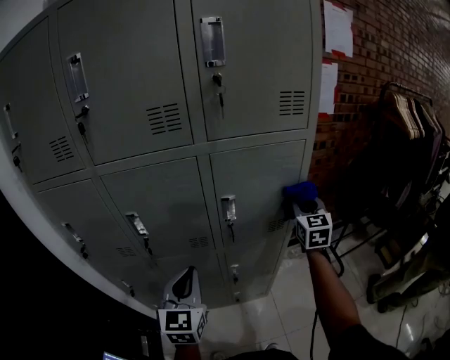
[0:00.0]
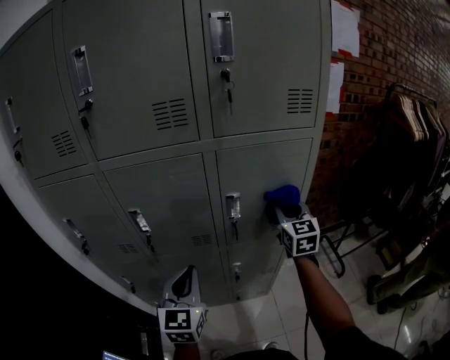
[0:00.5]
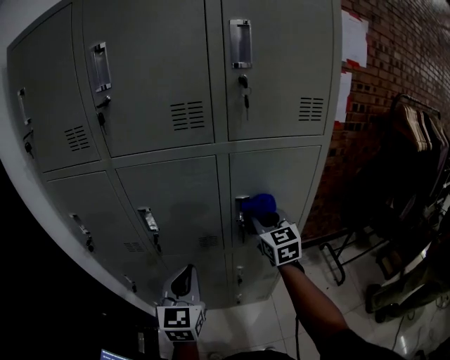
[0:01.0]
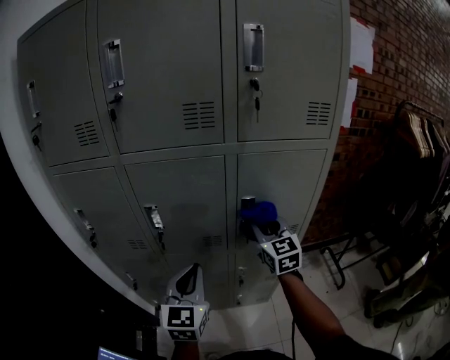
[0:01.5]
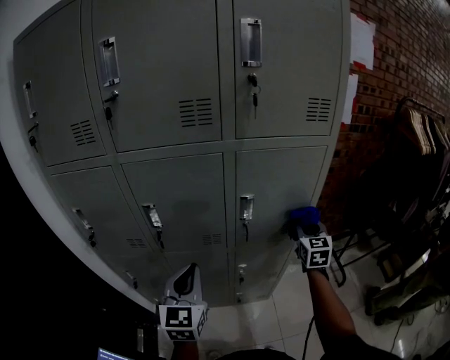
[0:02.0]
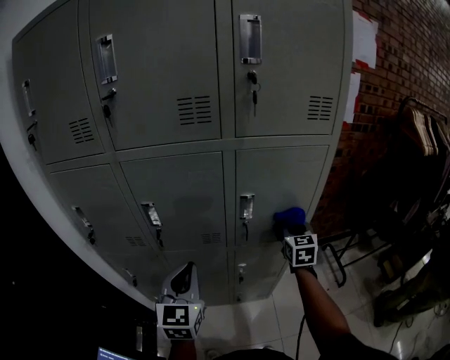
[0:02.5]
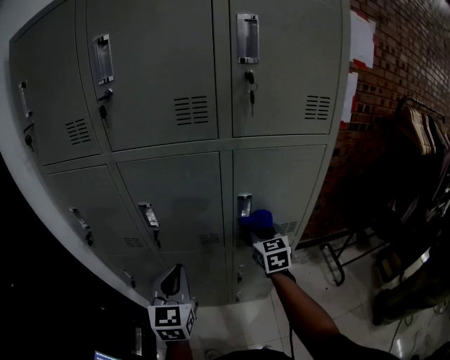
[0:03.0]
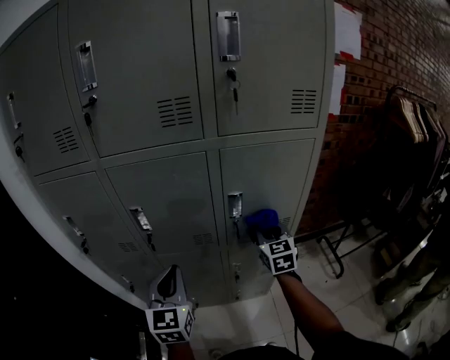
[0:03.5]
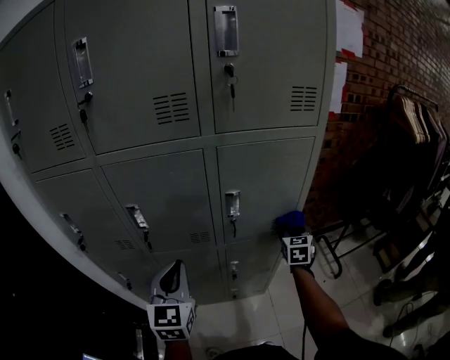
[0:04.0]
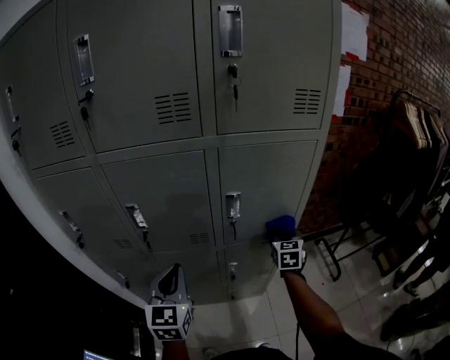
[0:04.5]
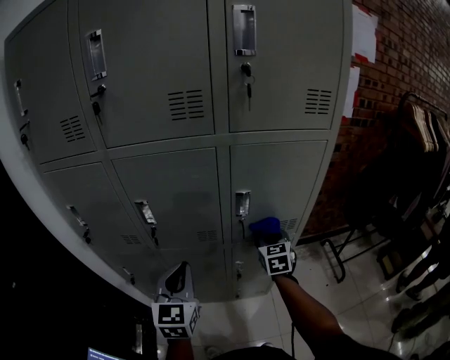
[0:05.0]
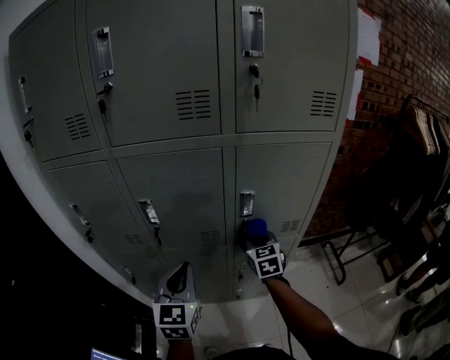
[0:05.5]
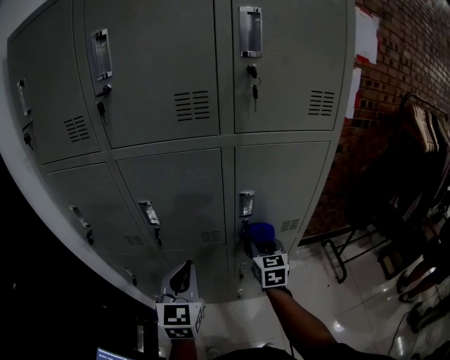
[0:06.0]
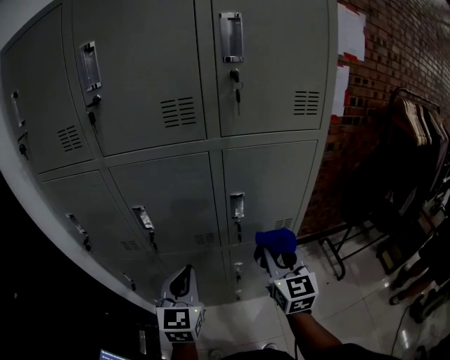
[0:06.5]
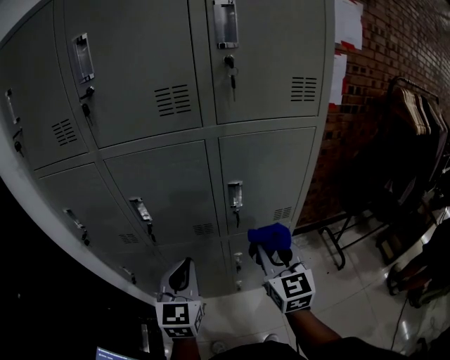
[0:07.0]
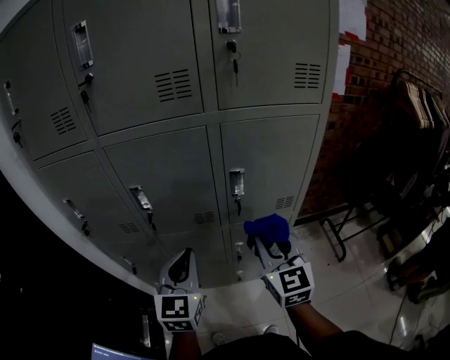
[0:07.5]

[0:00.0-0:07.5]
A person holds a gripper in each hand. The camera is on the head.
0:00.0 to 0:02.0: The right gripper goes some 5 cm downward, and travels to the left and back again, roughly 20 cm each way.
0:02.0 to 0:04.0: The right gripper goes some 10 cm downward, and goes to the left and returns, some 15 cm each way.
0:04.0 to 0:05.5: The right gripper heads to the left, covering some 20 cm, and turns by approximately 20 degrees.
0:05.5 to 0:07.5: The right gripper travels backward and upward by about 20 cm.

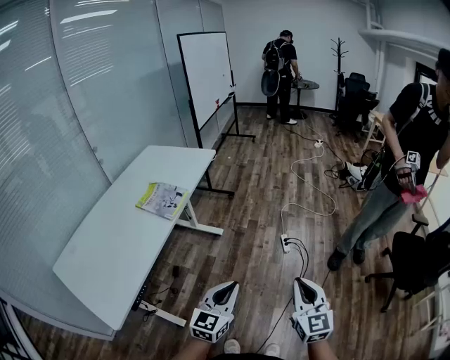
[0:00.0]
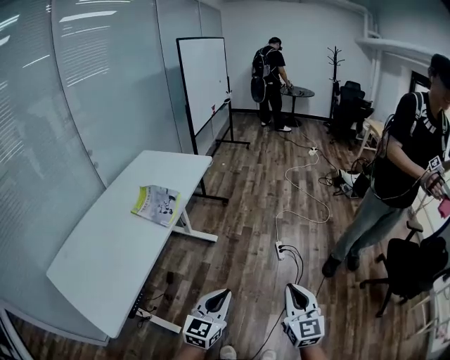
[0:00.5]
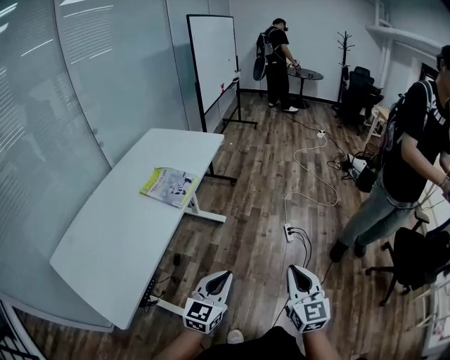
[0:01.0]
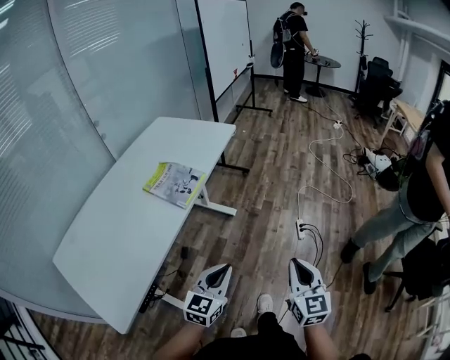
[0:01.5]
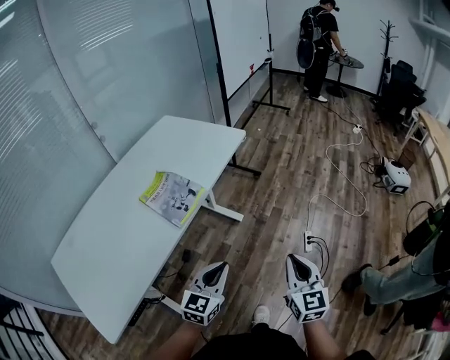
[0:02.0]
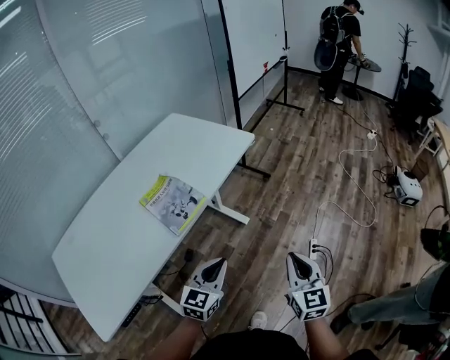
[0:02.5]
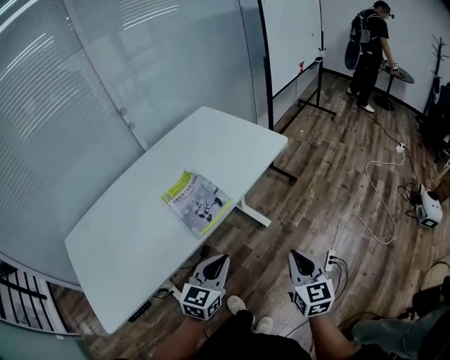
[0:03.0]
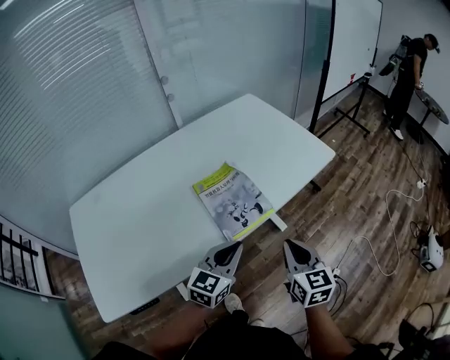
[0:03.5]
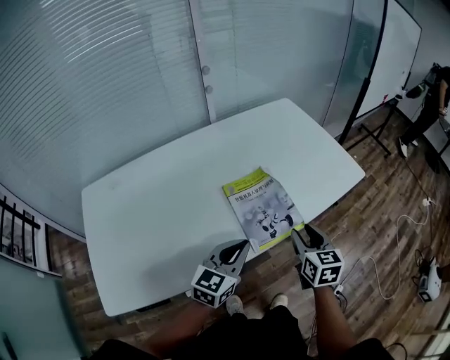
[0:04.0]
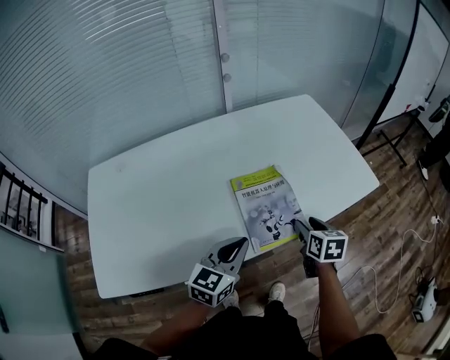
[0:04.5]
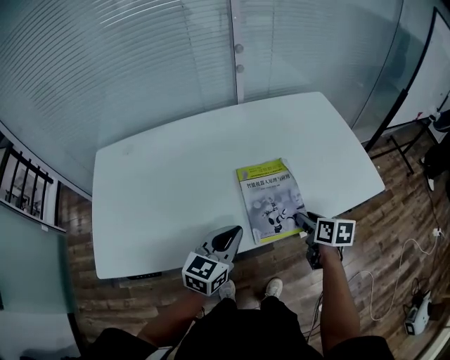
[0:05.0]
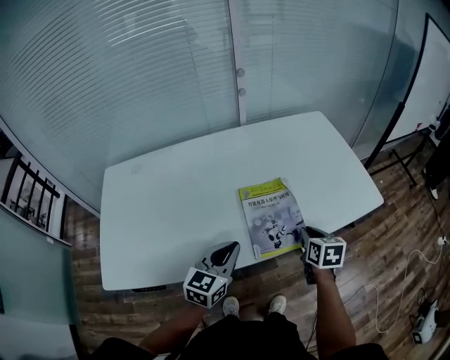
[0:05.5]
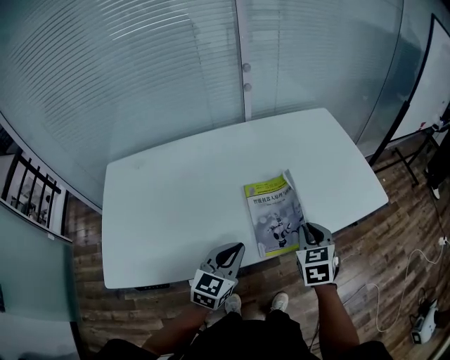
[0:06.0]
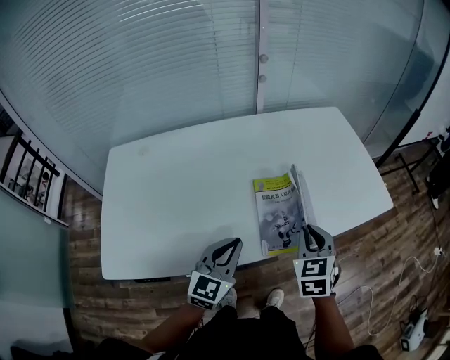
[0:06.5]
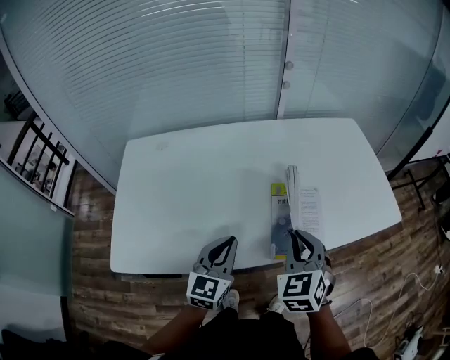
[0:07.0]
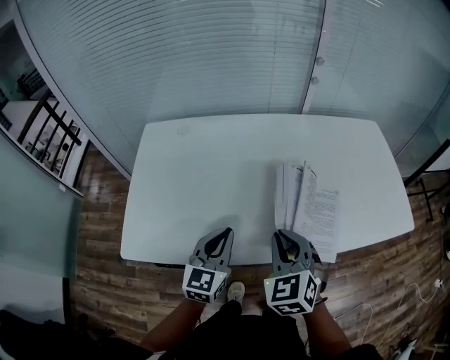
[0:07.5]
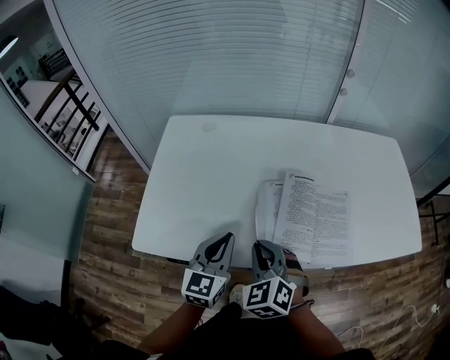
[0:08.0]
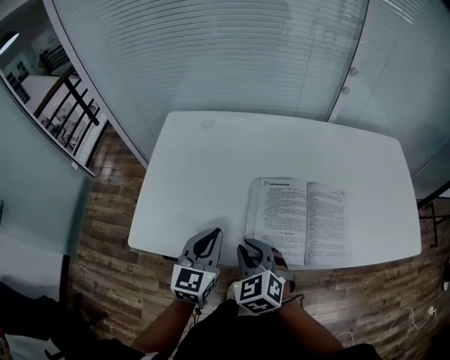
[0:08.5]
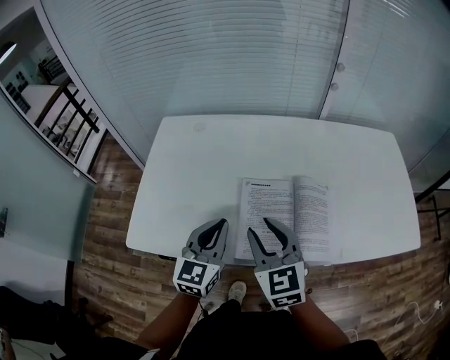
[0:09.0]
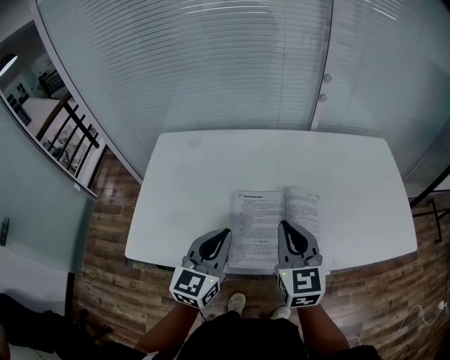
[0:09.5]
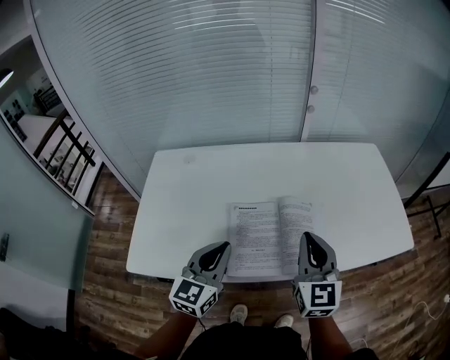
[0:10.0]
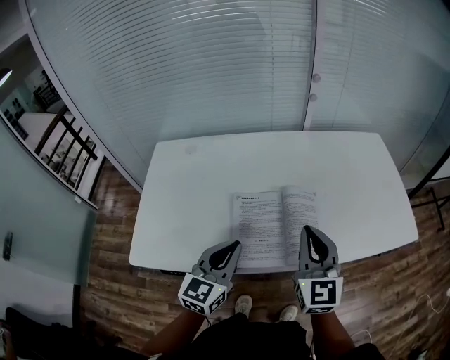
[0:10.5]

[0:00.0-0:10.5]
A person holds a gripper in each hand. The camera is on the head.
0:00.0 to 0:02.0: Both grippers travel together forward and to the left, some 25 cm.
0:02.0 to 0:04.0: The left gripper ends up some 25 cm from where it was, and swivels some 30 degrees, while the right gripper ends up about 40 cm from where it was, rotates approximately 40 degrees, and opens.
0:04.0 to 0:06.5: The two grippers go roughly 5 cm to the left. The right gripper turns by roughly 30 degrees, and closes. The left gripper swivels about 20 degrees.
0:06.5 to 0:08.5: The left gripper ends up approximately 20 cm from where it was, and rotates roughly 30 degrees; the right gripper moves approximately 35 cm, and changes its angle by some 40 degrees.
0:08.5 to 0:10.5: The right gripper heads to the right and upward, covering some 25 cm, points its fingers roughly 30 degrees further upward, and opens, then closes again, while the left gripper heads to the right and upward, covering some 15 cm.

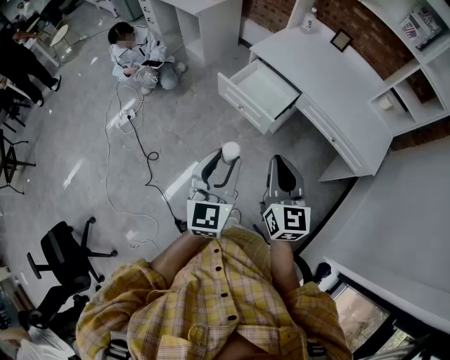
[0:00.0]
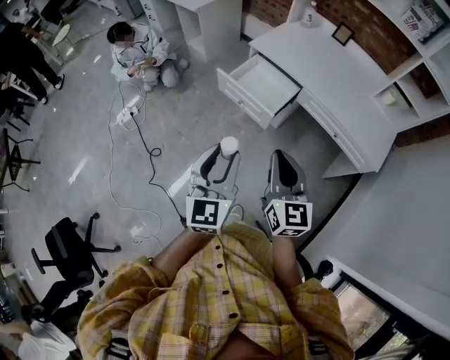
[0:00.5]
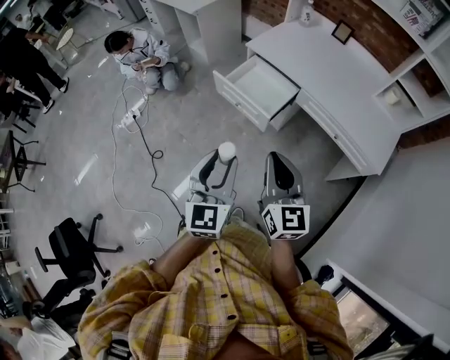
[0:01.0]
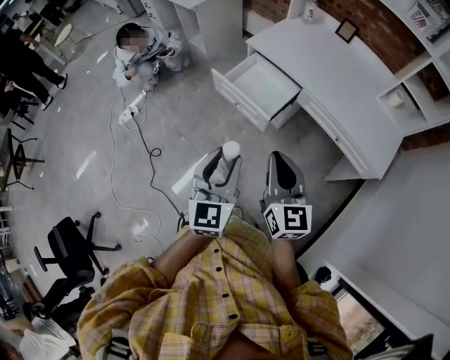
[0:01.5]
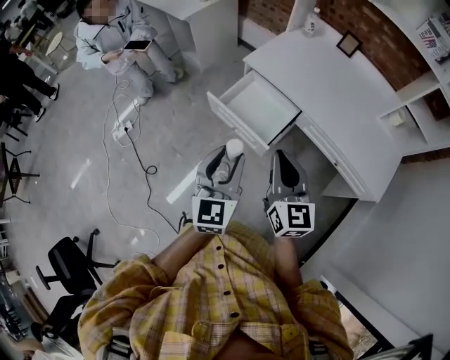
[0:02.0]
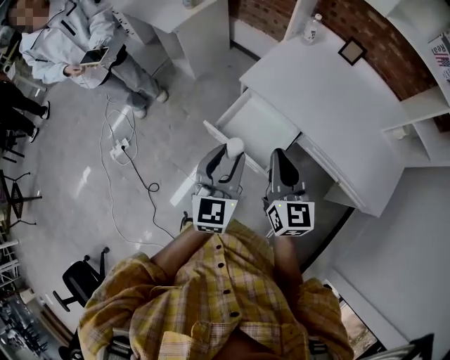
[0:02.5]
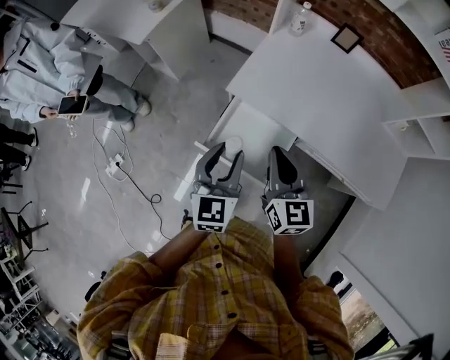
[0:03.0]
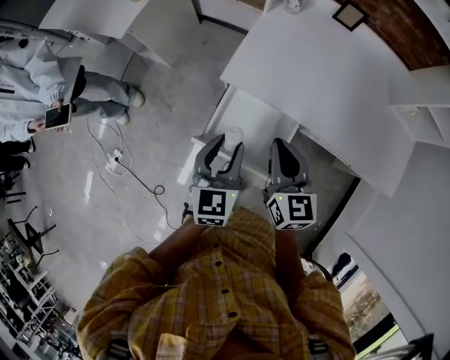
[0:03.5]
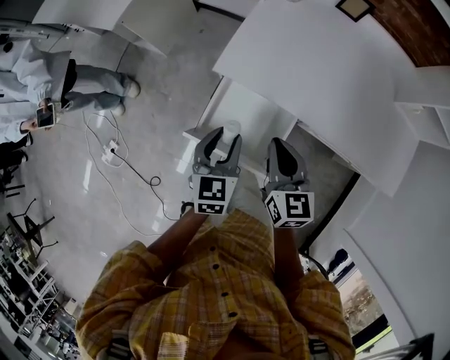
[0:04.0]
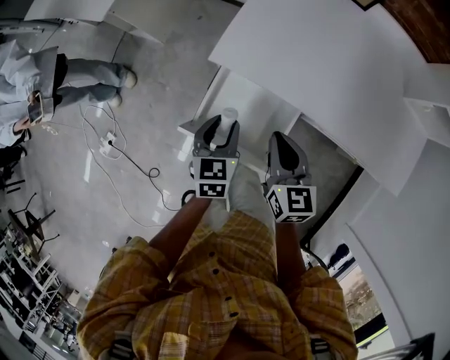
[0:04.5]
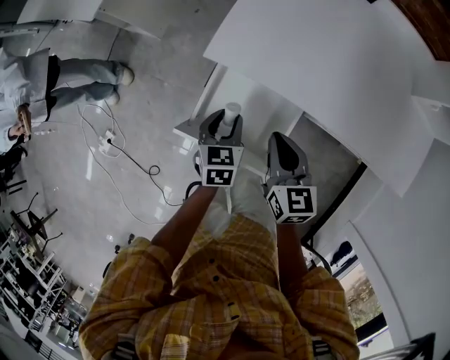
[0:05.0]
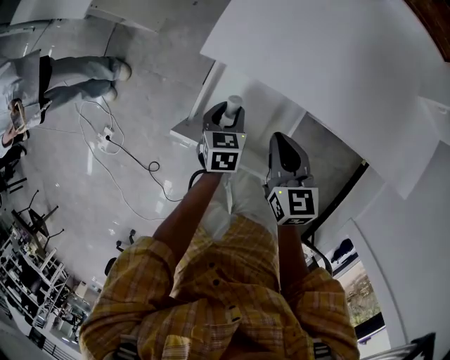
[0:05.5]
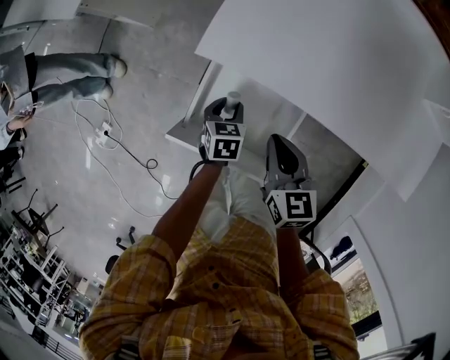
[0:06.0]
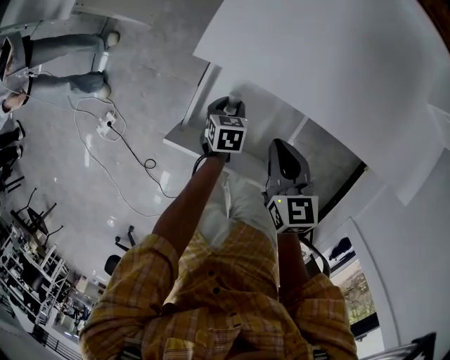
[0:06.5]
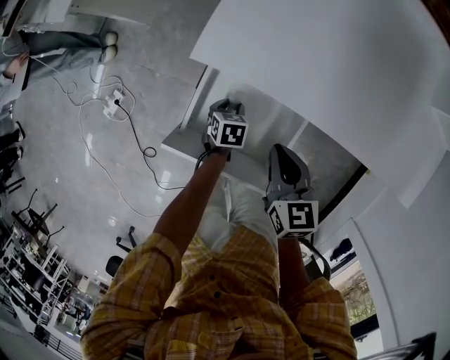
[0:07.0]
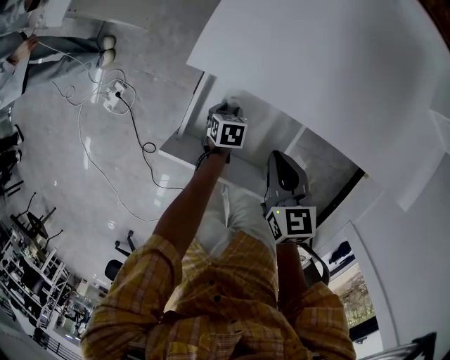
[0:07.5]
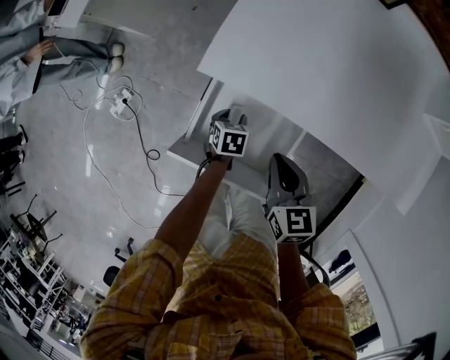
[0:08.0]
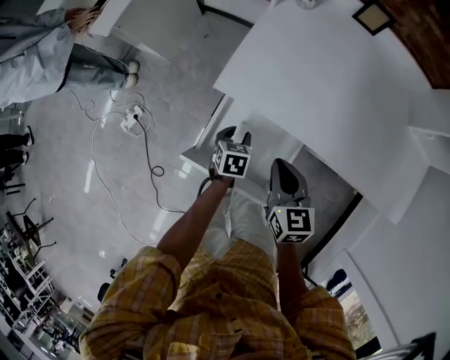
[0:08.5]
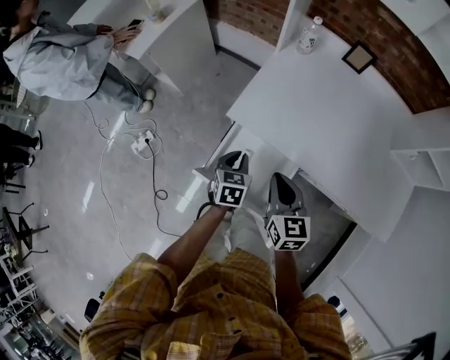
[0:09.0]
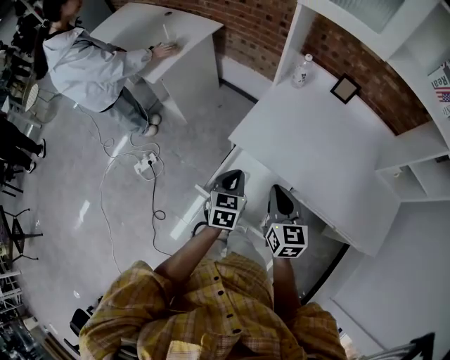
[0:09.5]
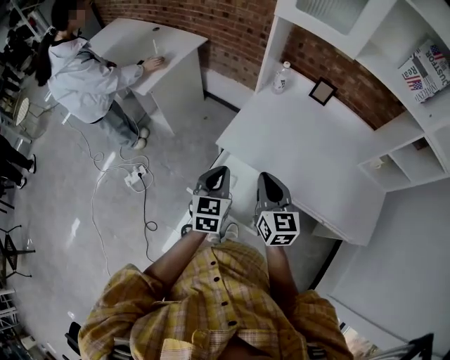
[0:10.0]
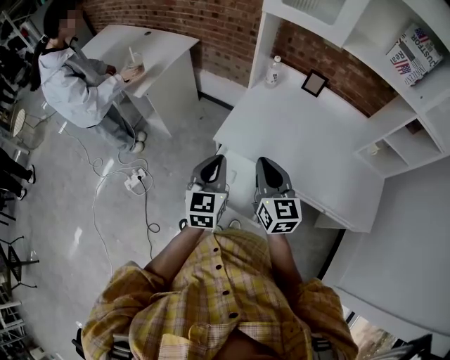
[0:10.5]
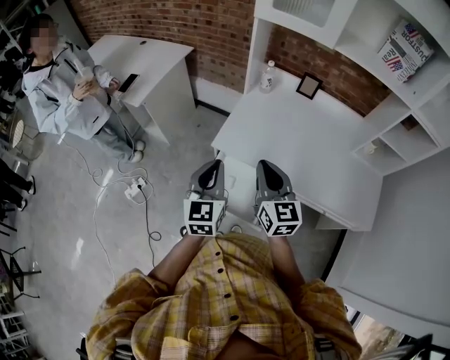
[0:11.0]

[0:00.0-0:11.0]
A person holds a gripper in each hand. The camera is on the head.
0:00.0 to 0:02.0: Both grippers move forward, some 15 cm.
0:02.0 to 0:03.5: The two grippers go roughly 30 cm forward. The left gripper turns by some 20 degrees. Meanwhile the right gripper turns by roughly 20 degrees.
0:03.5 to 0:05.5: The left gripper shifts about 25 cm downward, and turns by roughly 30 degrees; the right gripper goes about 15 cm downward.
0:05.5 to 0:07.5: The left gripper goes about 15 cm downward, and swivels some 20 degrees.
0:07.5 to 0:09.0: The left gripper shifts about 25 cm upward, rotates roughly 30 degrees, and closes its fingers. The right gripper shifts about 15 cm upward.
0:09.0 to 0:11.0: The left gripper travels upward by some 30 cm, and angles its fingers upward, by about 40 degrees. The right gripper heads upward, covering about 15 cm.
